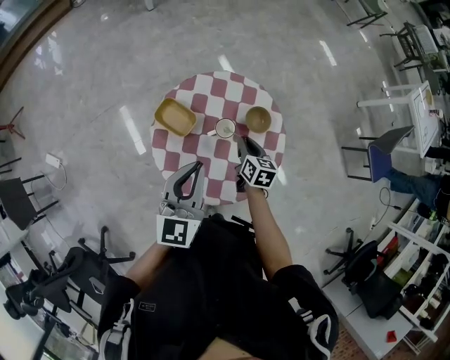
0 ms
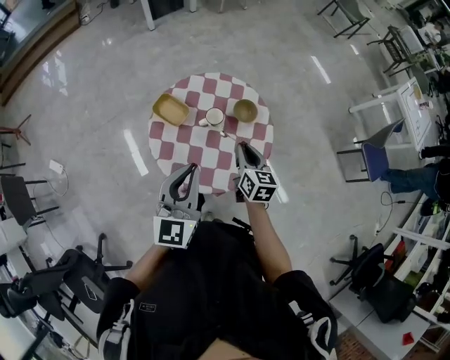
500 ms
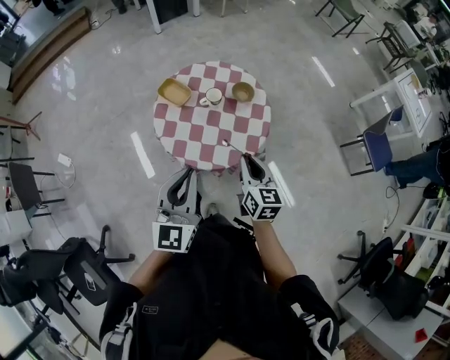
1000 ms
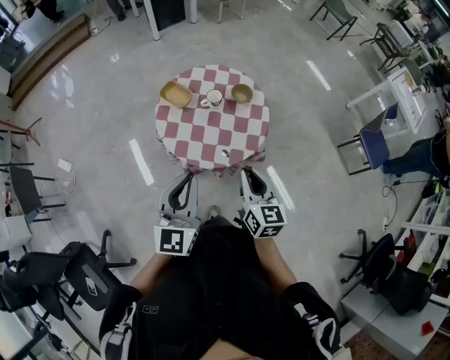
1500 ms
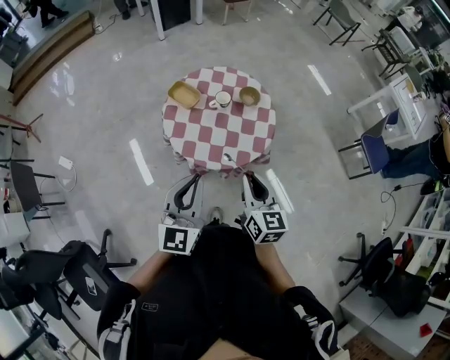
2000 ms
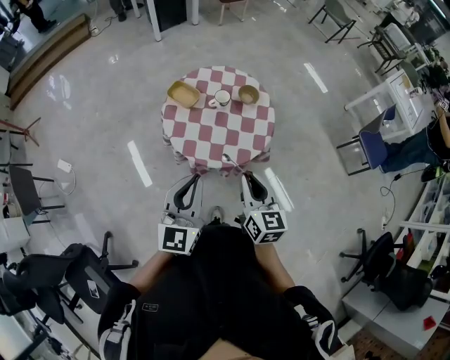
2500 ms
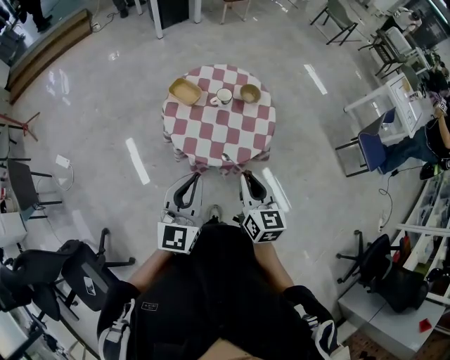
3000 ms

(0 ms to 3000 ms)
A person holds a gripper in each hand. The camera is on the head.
0 ms - 1500 ms: The left gripper travels backward by some 30 cm. The right gripper is displaced backward and upward by about 40 cm, and turns by approximately 30 degrees.
1500 ms - 3000 ms: The right gripper moves to the left, about 5 cm, while the left gripper shifts by about 5 cm.

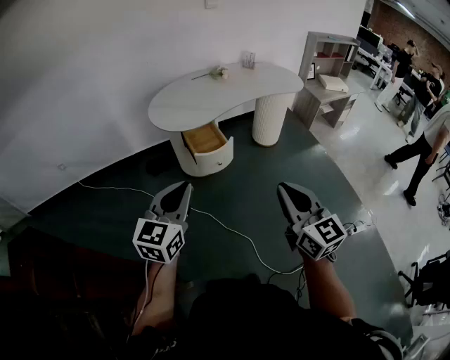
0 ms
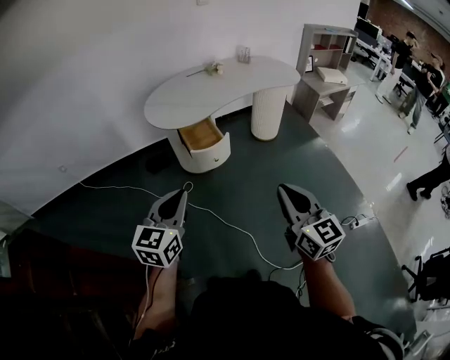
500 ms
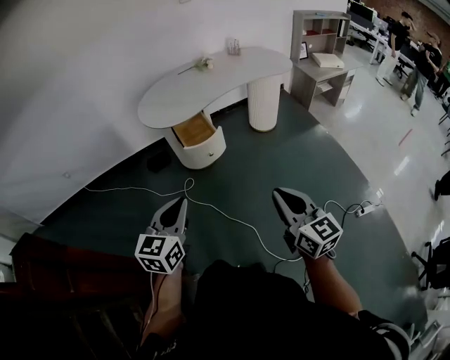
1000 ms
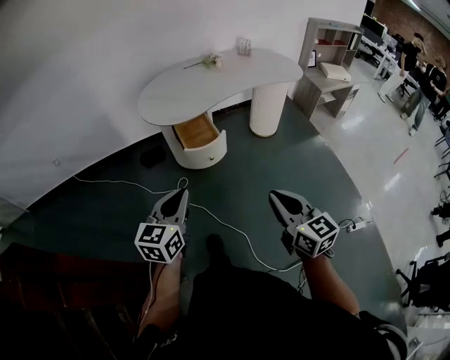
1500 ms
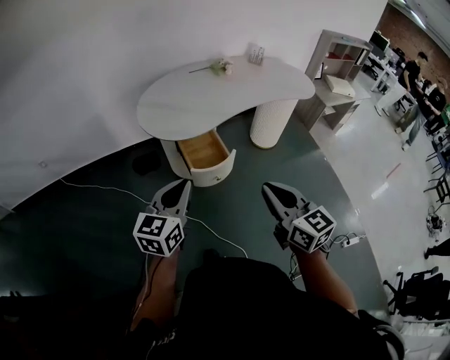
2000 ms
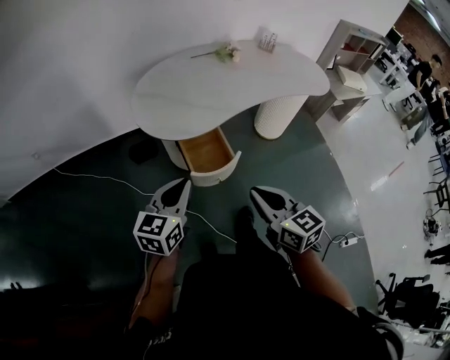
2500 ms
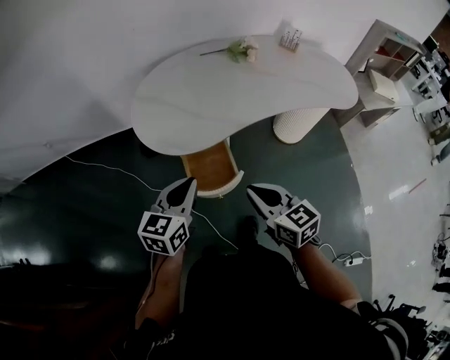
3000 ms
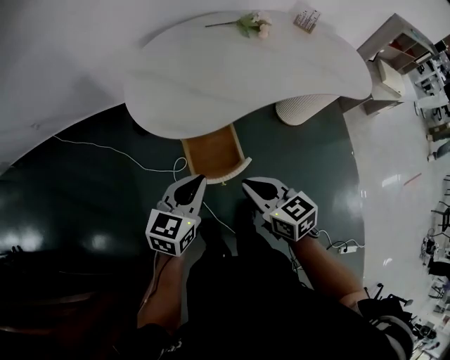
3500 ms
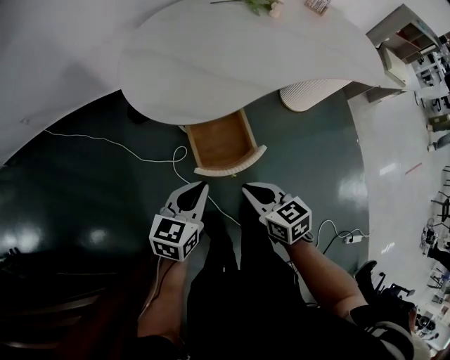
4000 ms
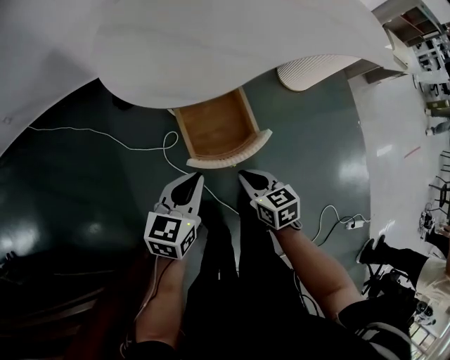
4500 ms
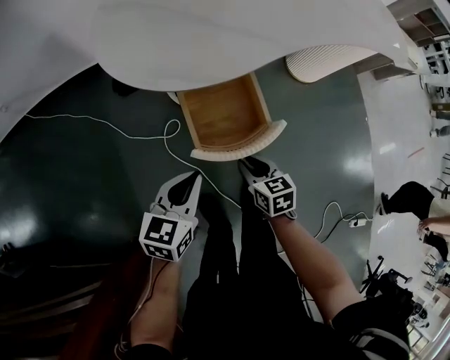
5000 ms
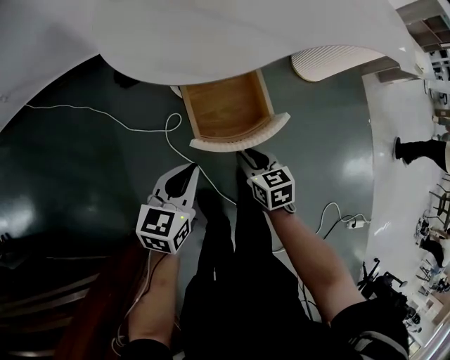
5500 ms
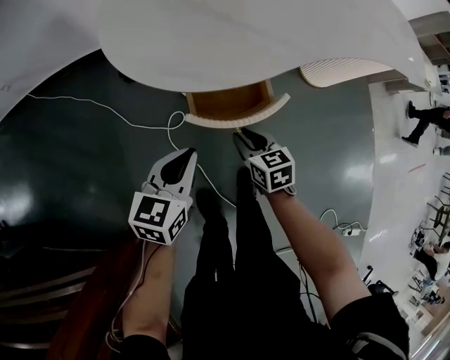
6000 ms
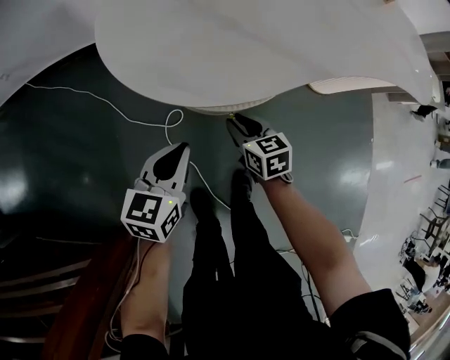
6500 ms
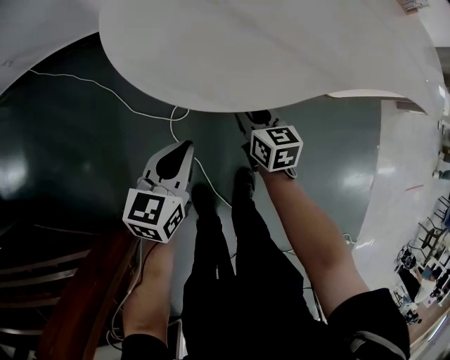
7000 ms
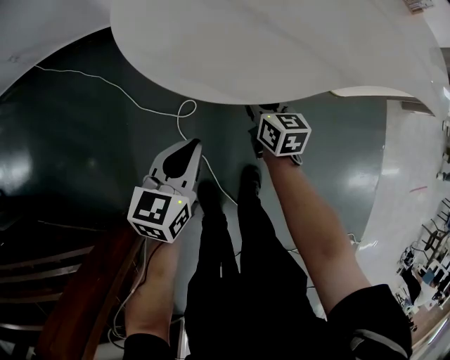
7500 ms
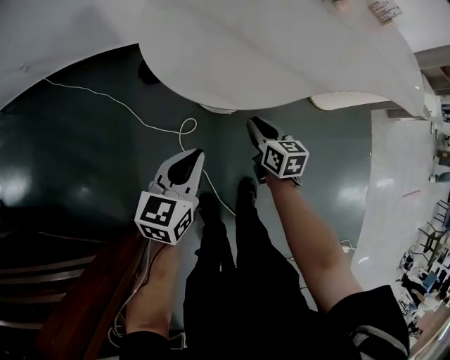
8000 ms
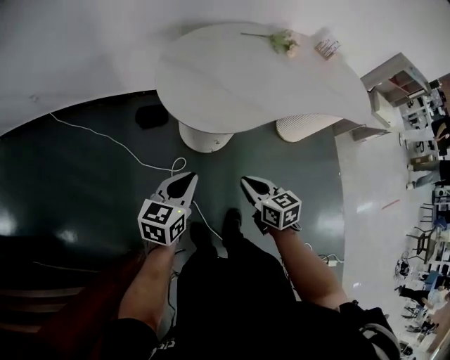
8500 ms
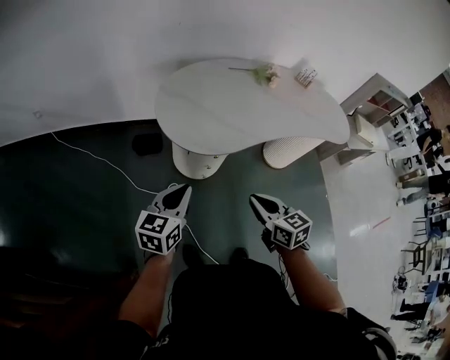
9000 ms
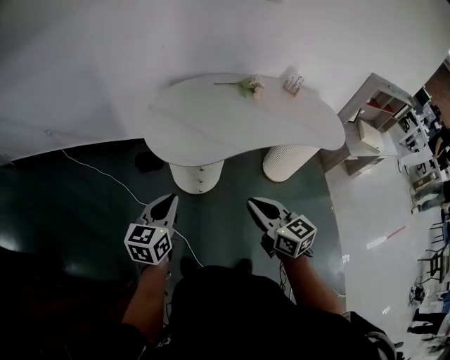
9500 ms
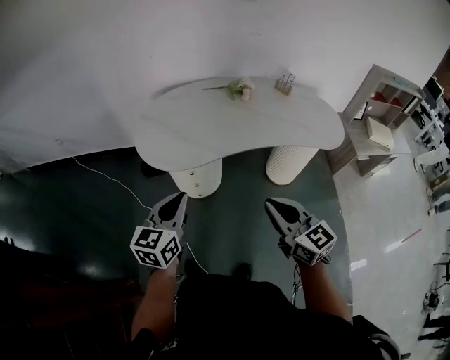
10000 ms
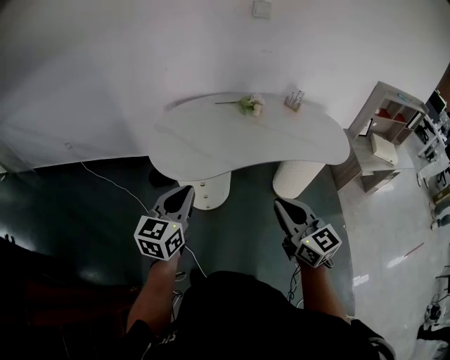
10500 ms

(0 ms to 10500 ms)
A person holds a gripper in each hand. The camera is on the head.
0 ms - 2000 ms: The grippers both shift forward by about 20 cm.
2000 ms - 4000 ms: The two grippers go some 35 cm downward and forward. The left gripper rotates some 20 degrees, while the right gripper swivels approximately 30 degrees.
4000 ms - 6500 ms: The left gripper shifts roughly 15 cm downward and forward. Meanwhile the right gripper heads downward and forward, covering roughly 30 cm, and opens up.
6500 ms - 8500 ms: The grippers both shift upward and backward by roughly 25 cm. The right gripper closes up.
8500 ms - 10500 ms: Both grippers move upward and to the right, roughly 35 cm. The right gripper angles its fingers upward, by approximately 30 degrees; the left gripper changes its angle by some 20 degrees.

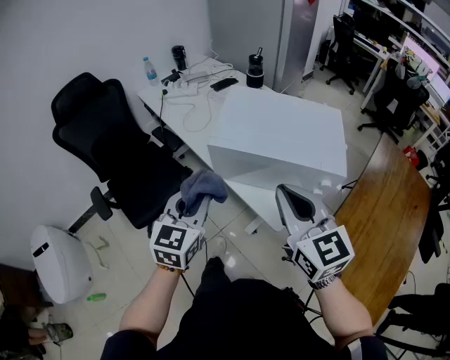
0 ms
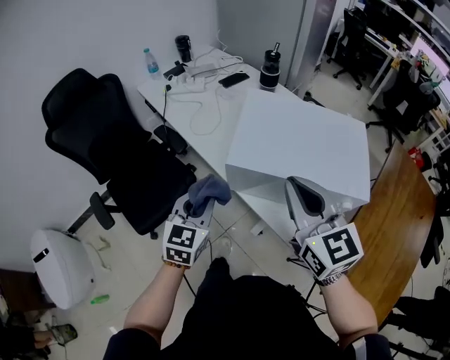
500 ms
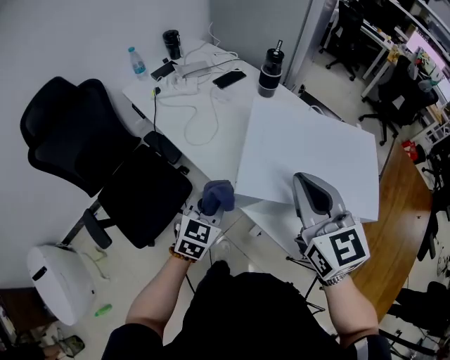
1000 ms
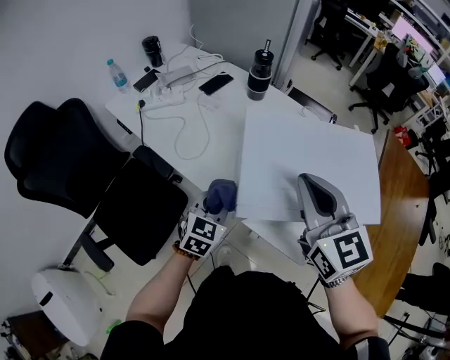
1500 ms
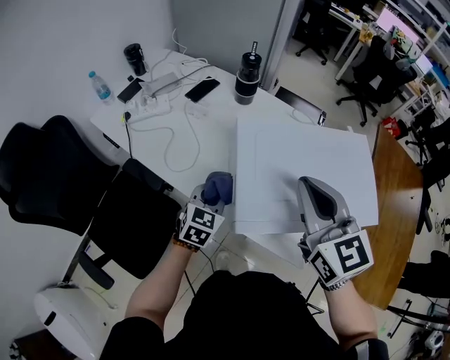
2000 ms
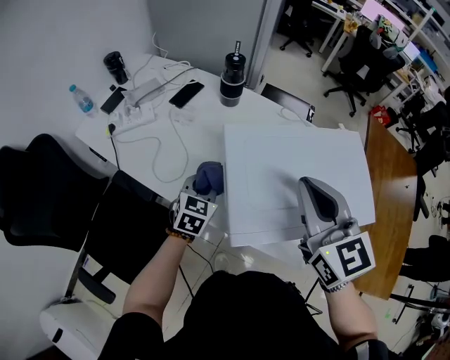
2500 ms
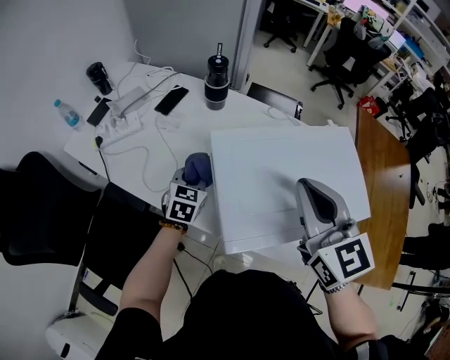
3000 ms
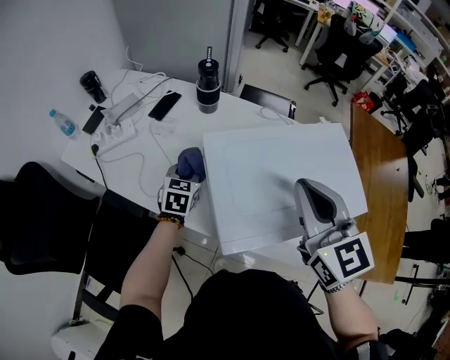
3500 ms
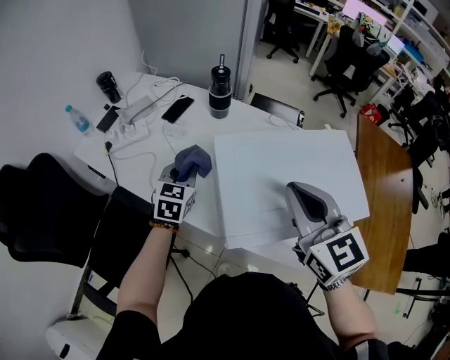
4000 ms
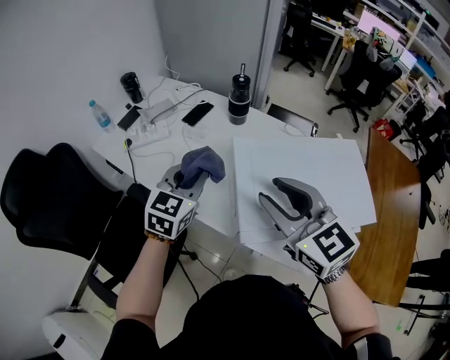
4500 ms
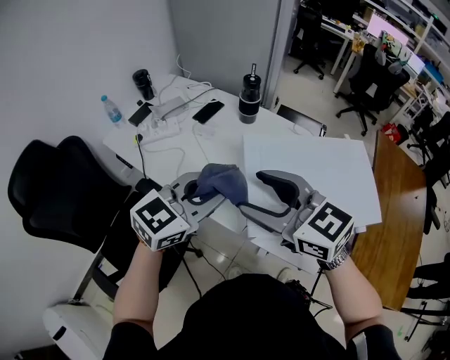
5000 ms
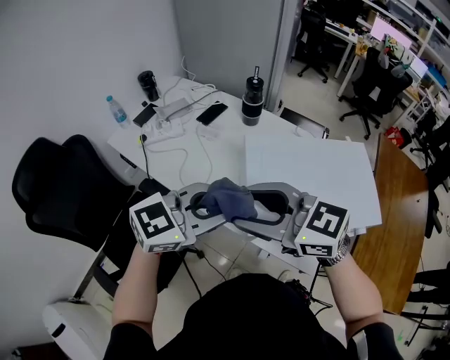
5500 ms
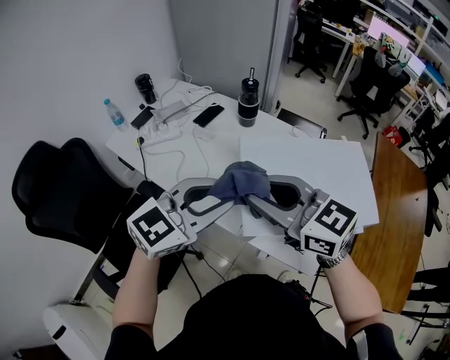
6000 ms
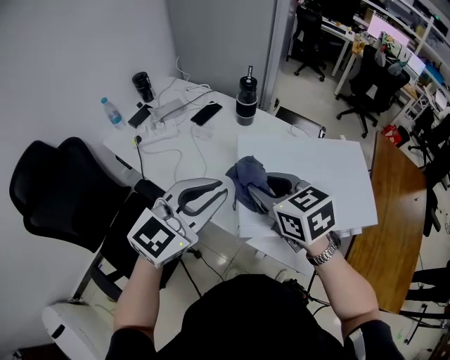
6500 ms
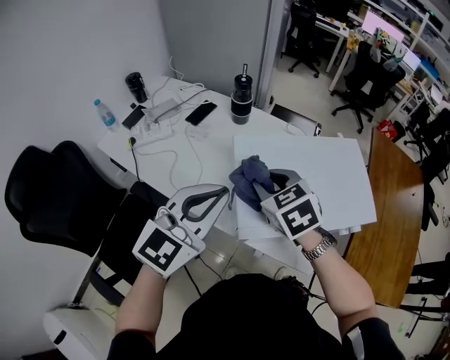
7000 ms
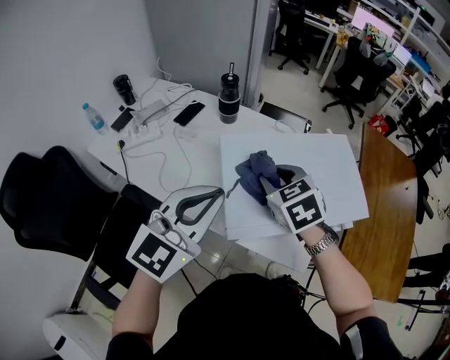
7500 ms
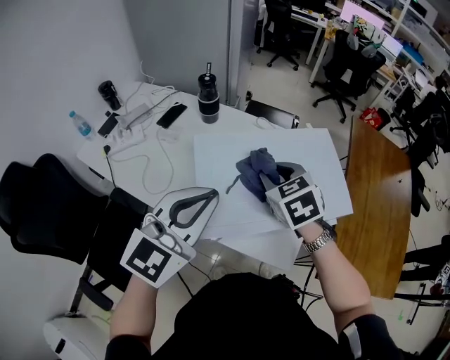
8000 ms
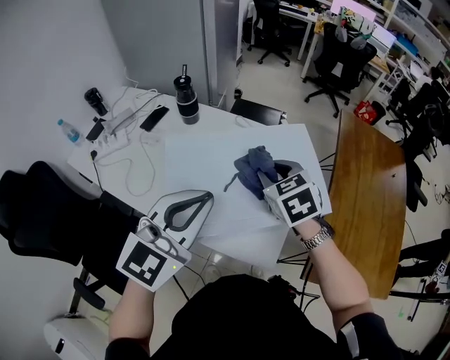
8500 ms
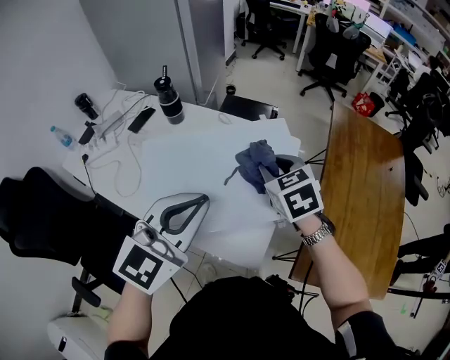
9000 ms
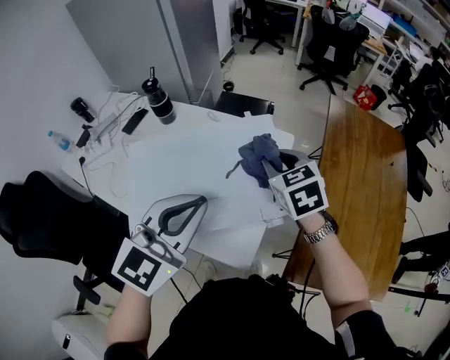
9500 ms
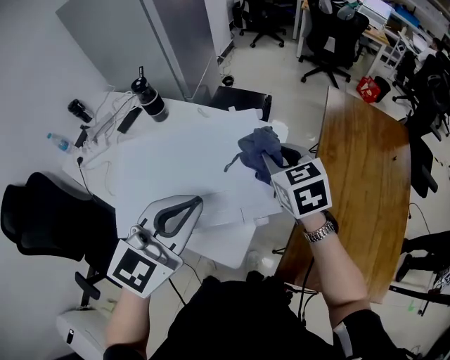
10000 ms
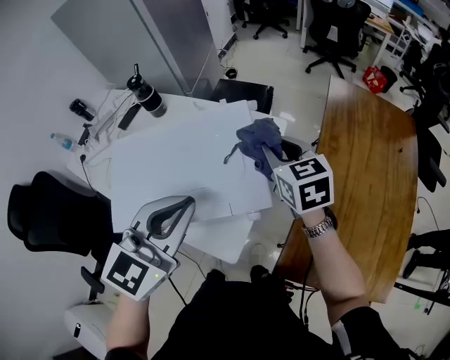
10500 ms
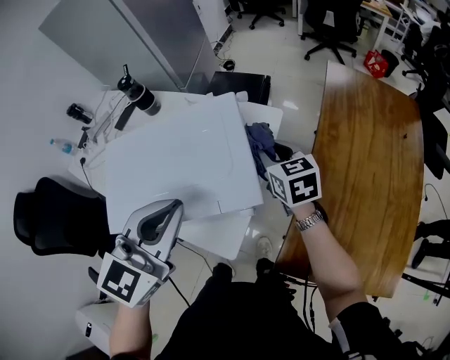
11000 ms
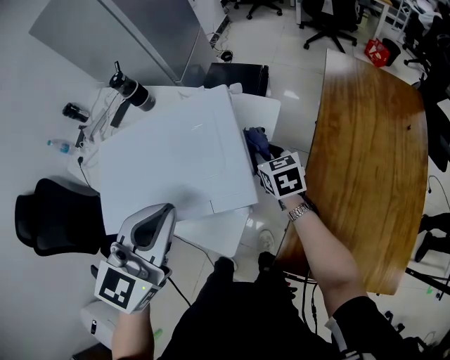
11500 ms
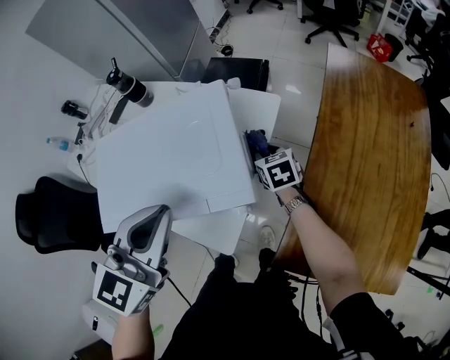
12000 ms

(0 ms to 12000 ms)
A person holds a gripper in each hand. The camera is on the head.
0 ms - 2000 ms: The right gripper travels forward by about 25 cm, and changes its angle by roughly 20 degrees, while the left gripper heads forward and downward, covering some 35 cm, and changes its angle by approximately 30 degrees.
2000 ms - 4000 ms: The left gripper is displaced forward by about 10 cm.
4000 ms - 6000 ms: The right gripper shifts by approximately 10 cm, rotates about 40 degrees, and opens. The left gripper shifts about 20 cm upward, and swivels some 40 degrees.
6000 ms - 8000 ms: The right gripper is displaced to the right, downward and forward by some 20 cm, and tilts its fingers roughly 30 degrees downward; the left gripper goes some 10 cm to the right, and closes.
8000 ms - 10000 ms: Both grippers move to the right, approximately 25 cm.
10000 ms - 12000 ms: The right gripper shifts about 25 cm downward.

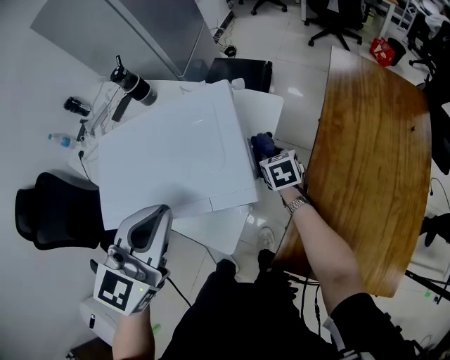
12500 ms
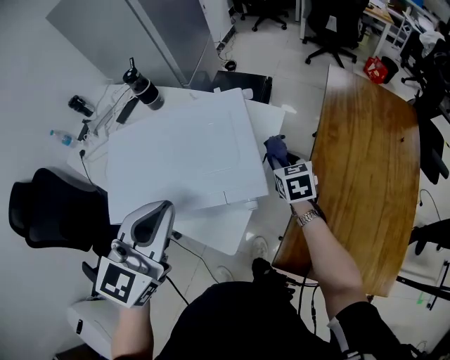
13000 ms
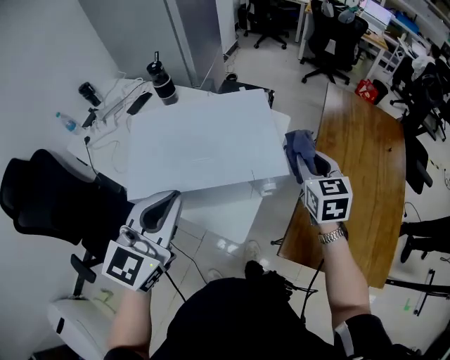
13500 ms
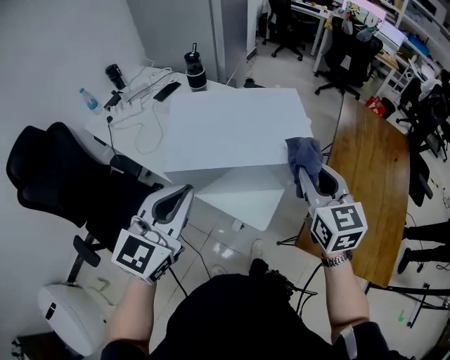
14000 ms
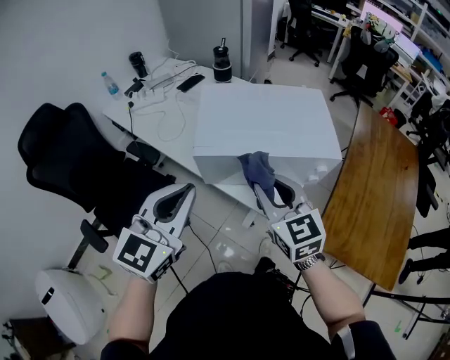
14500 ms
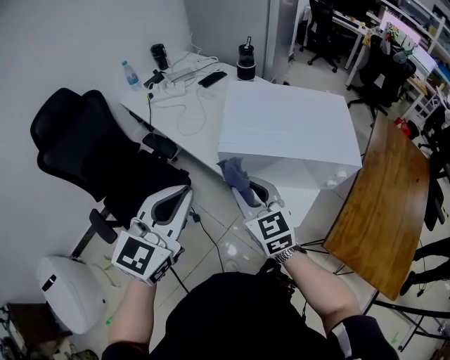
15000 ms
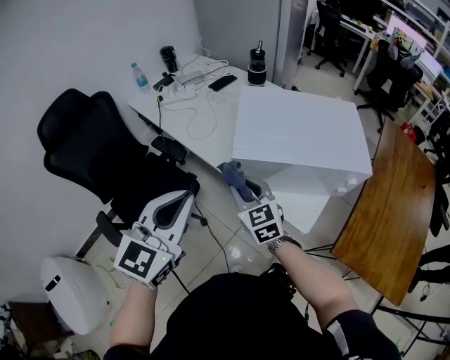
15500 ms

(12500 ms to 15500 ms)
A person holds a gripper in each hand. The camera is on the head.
12500 ms - 14000 ms: The right gripper is displaced upward and backward by approximately 40 cm, and tilts its fingers roughly 30 degrees upward. The left gripper shifts approximately 25 cm to the left and backward.
14000 ms - 15500 ms: The right gripper moves to the left and downward, roughly 40 cm, and rotates approximately 30 degrees. Meanwhile the left gripper travels to the left by about 15 cm.
